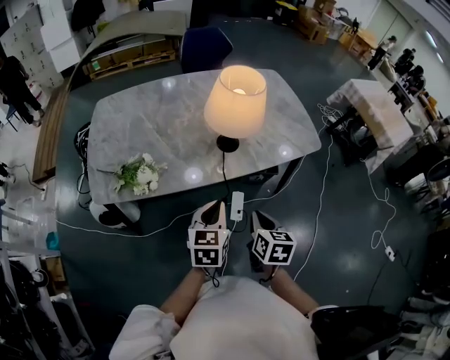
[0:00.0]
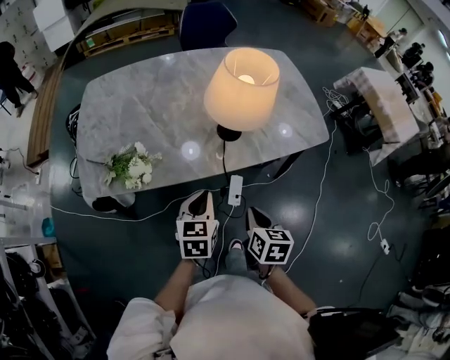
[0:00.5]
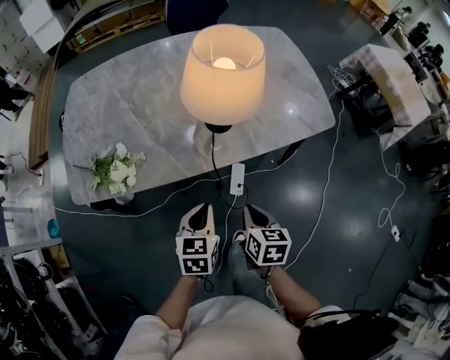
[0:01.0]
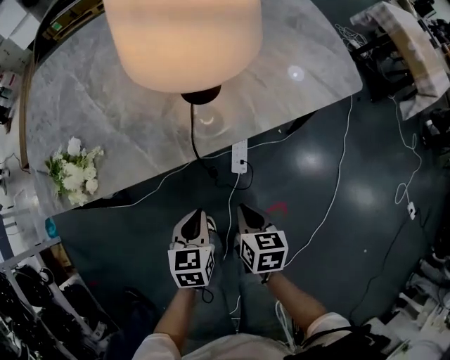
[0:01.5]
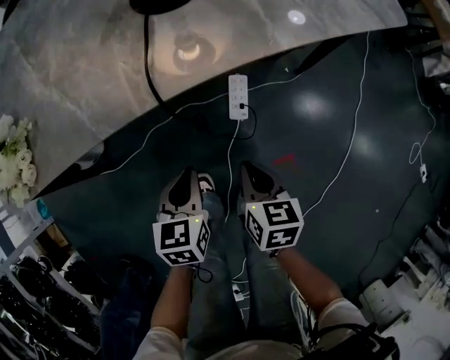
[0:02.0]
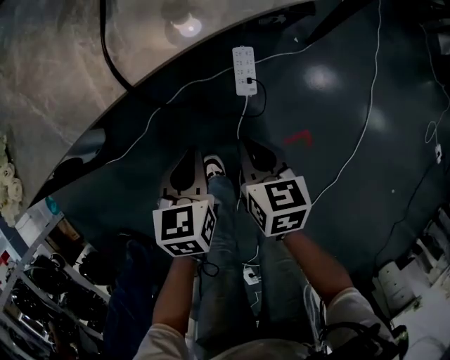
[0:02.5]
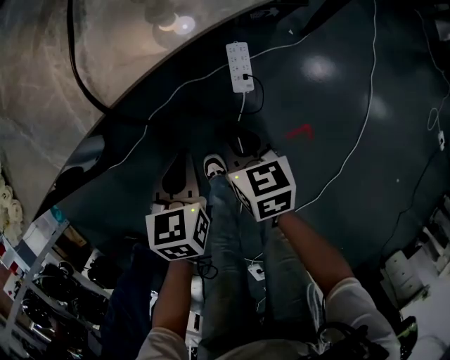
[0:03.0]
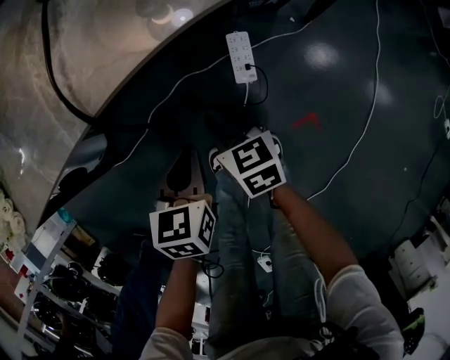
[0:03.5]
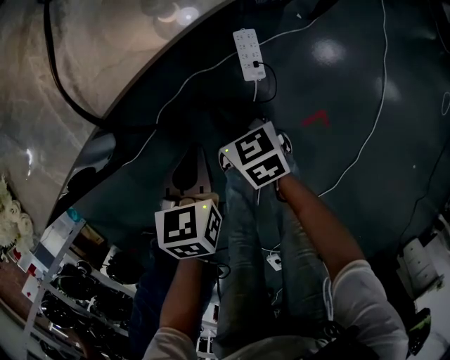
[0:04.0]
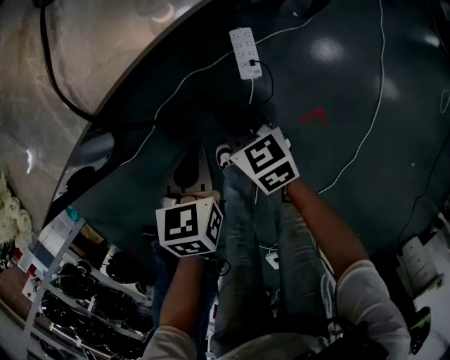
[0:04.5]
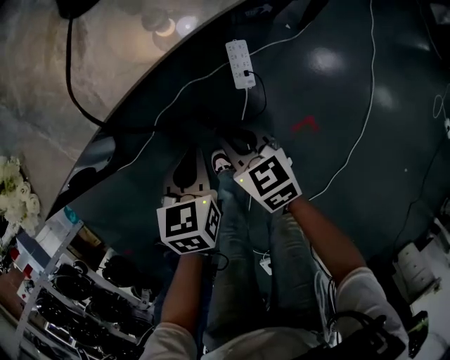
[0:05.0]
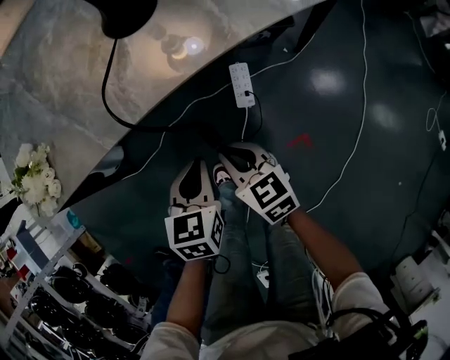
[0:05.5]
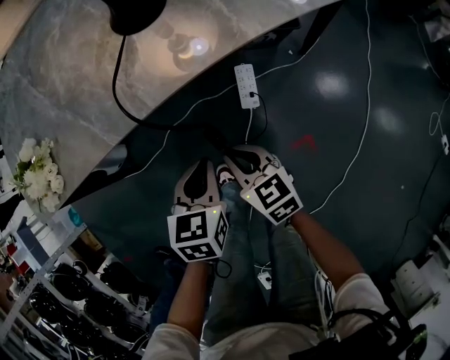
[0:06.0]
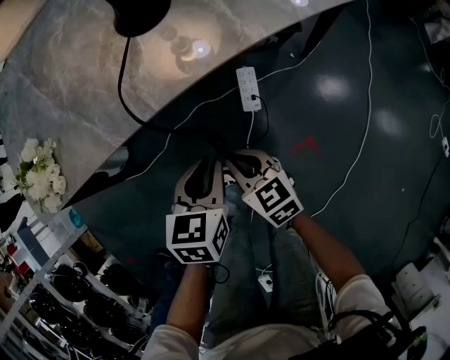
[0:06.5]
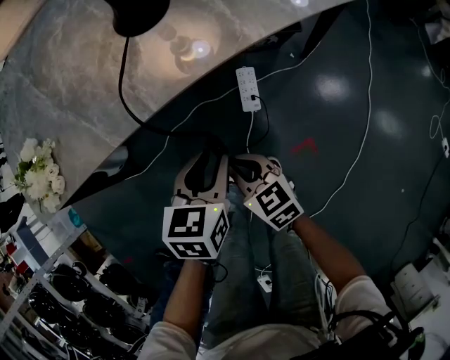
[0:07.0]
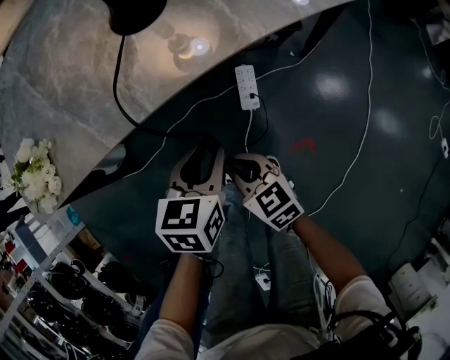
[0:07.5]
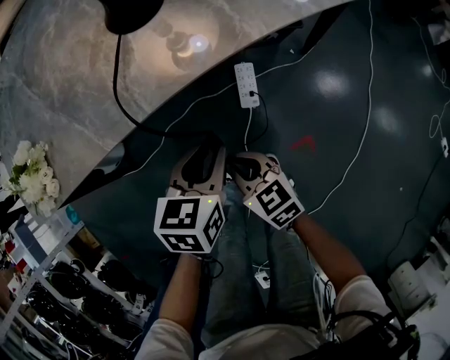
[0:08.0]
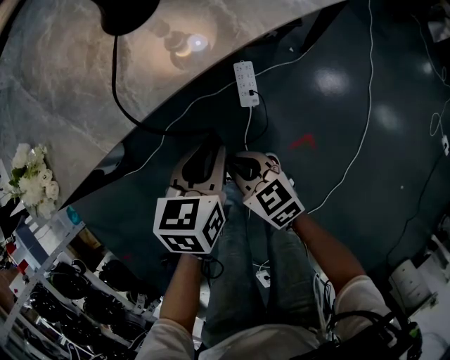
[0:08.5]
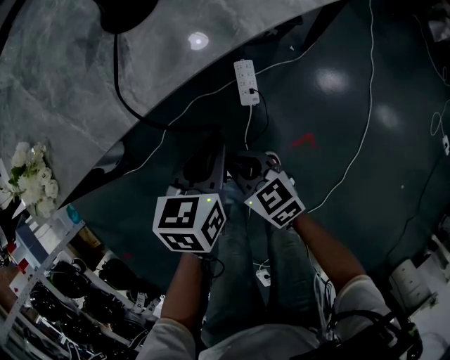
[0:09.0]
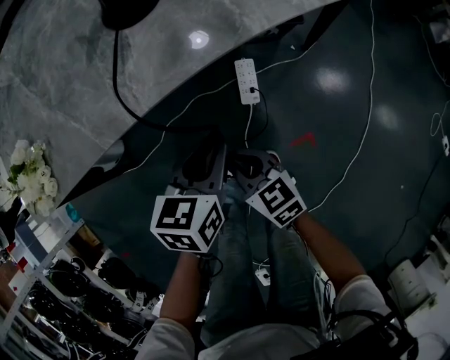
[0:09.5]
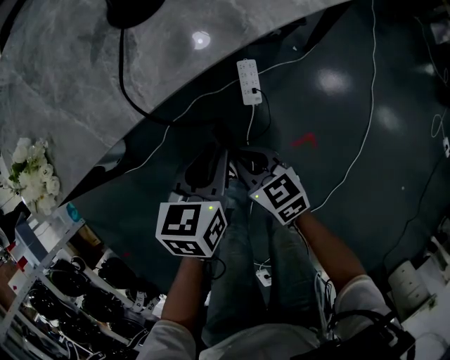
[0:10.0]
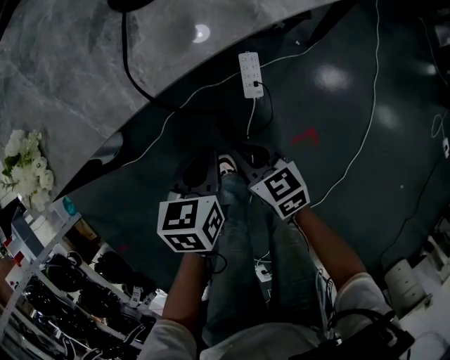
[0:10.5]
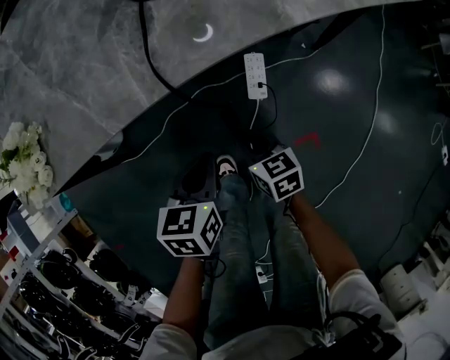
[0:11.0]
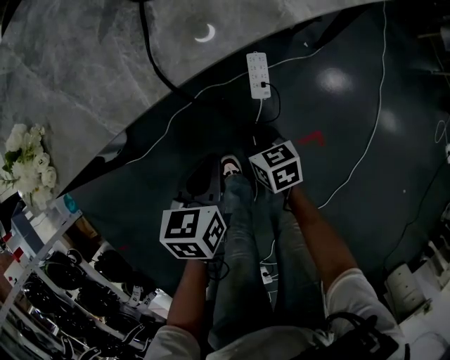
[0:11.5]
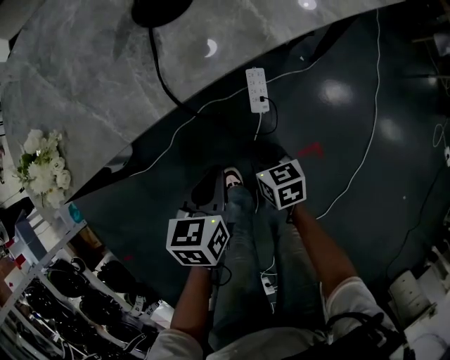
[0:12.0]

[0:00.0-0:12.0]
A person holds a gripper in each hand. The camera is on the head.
0:00.0 to 0:02.0: The two grippers go some 35 cm downward.
0:02.0 to 0:04.0: The left gripper heads downward, covering about 5 cm; the right gripper shifts about 15 cm downward, to the left and forward.
0:04.0 to 0:06.0: The right gripper heads upward and backward, covering approximately 15 cm, while the left gripper goes some 10 cm upward.
0:06.0 to 0:08.0: The left gripper opens up.
0:08.0 to 0:10.0: The grippers stay close to where they were, moving slightly.
0:10.0 to 0:12.0: The right gripper moves downward, approximately 5 cm, while the left gripper ends up about 5 cm from where it was.

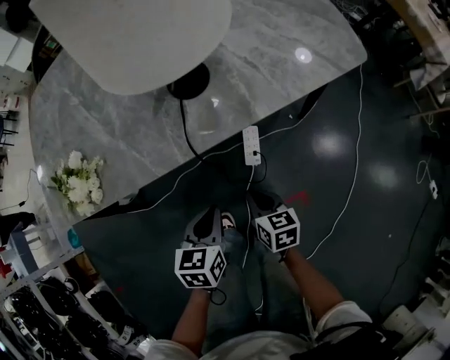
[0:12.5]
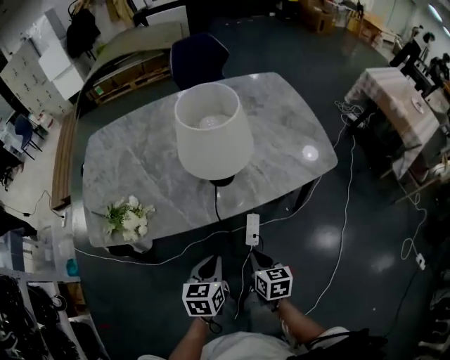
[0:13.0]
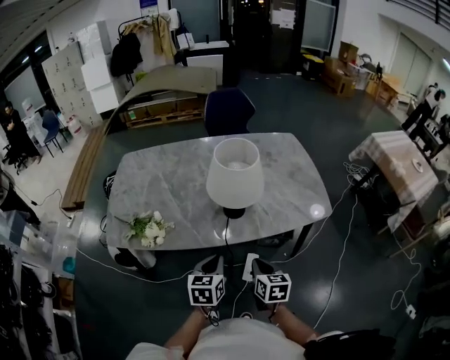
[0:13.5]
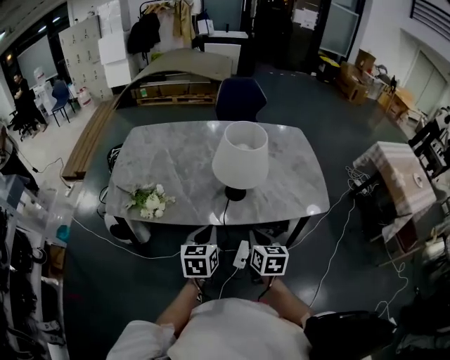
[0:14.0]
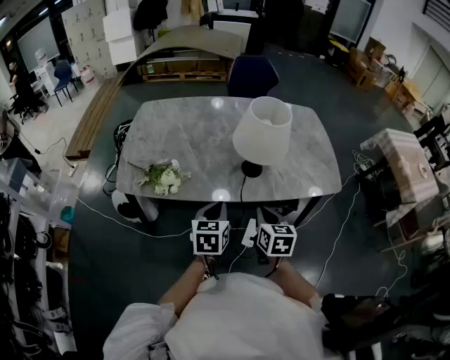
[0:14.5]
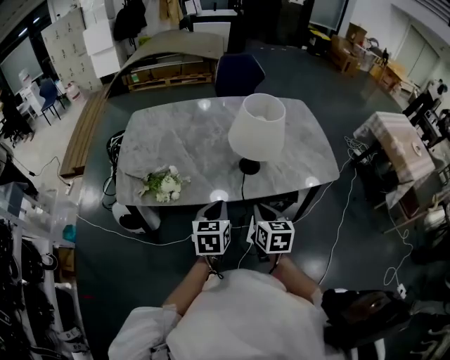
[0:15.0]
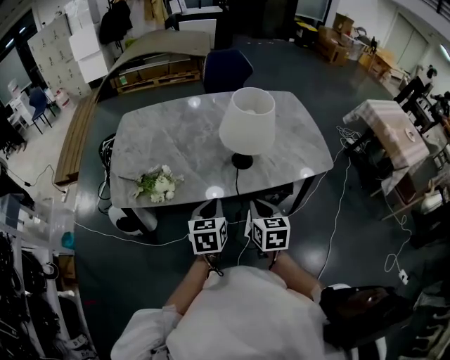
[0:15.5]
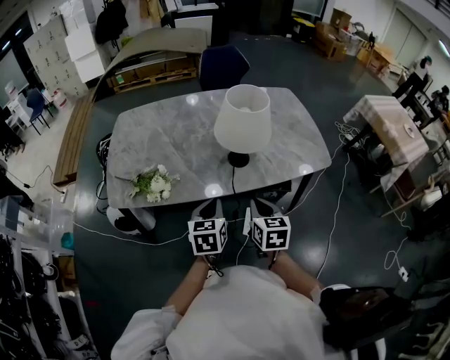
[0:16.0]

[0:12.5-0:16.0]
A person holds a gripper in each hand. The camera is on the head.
0:12.5 to 0:14.5: Both grippers move upward, roughly 30 cm. The right gripper swivels about 20 degrees. Meanwhile the left gripper rotates some 20 degrees.
0:14.5 to 0:16.0: The grippers move only a little.

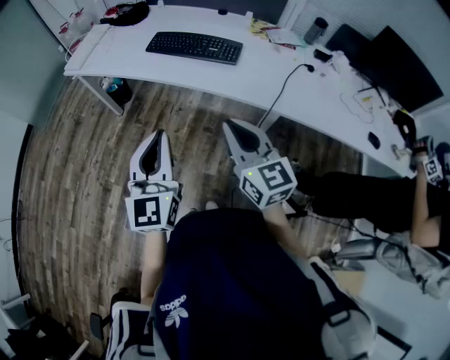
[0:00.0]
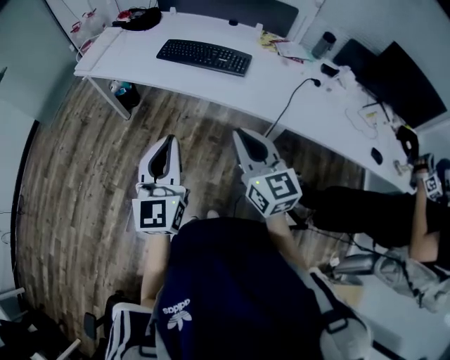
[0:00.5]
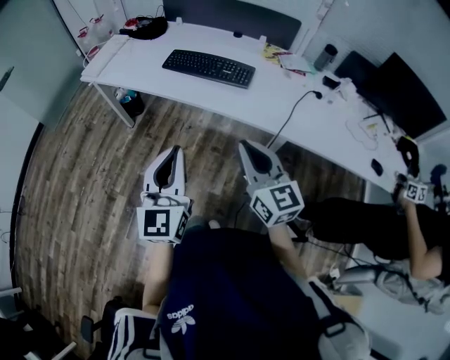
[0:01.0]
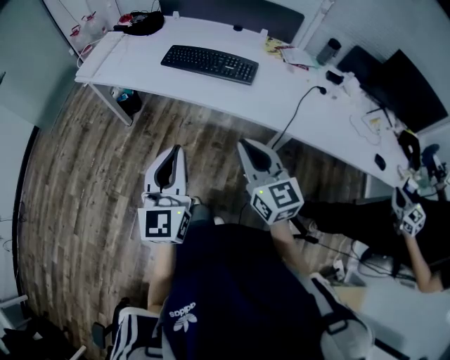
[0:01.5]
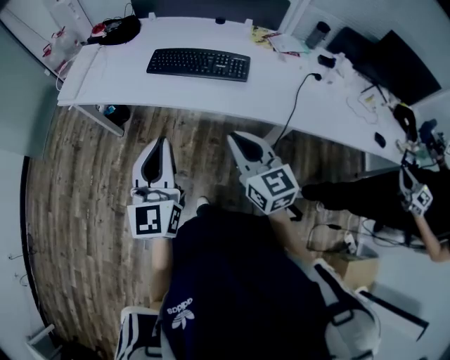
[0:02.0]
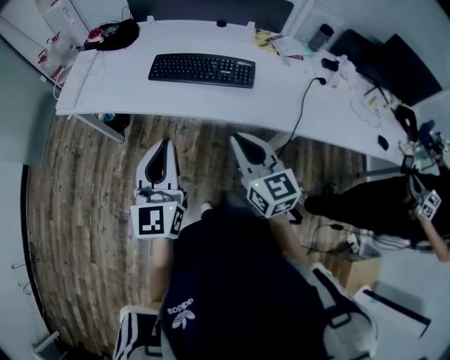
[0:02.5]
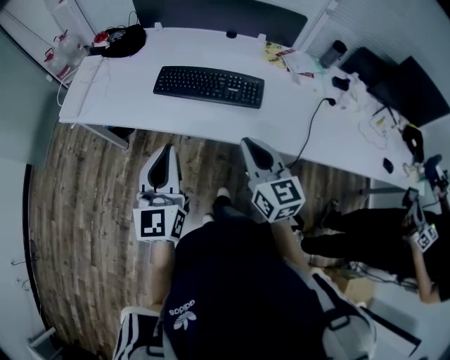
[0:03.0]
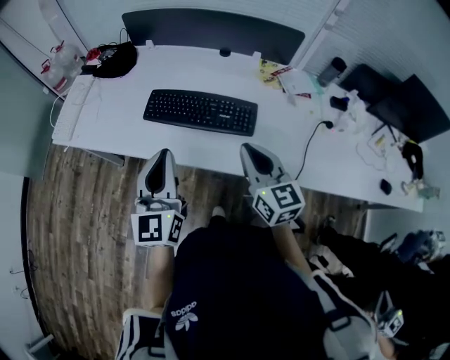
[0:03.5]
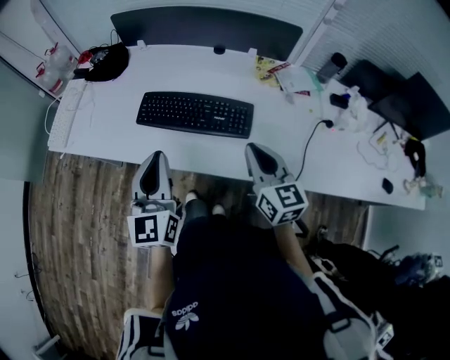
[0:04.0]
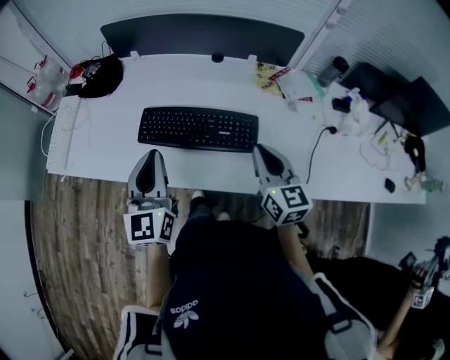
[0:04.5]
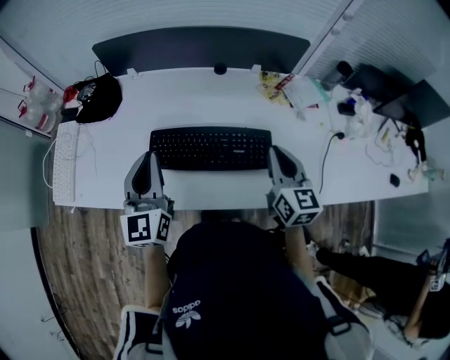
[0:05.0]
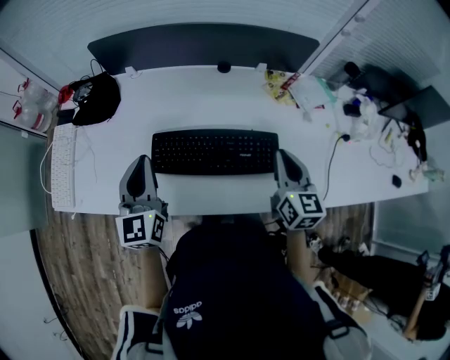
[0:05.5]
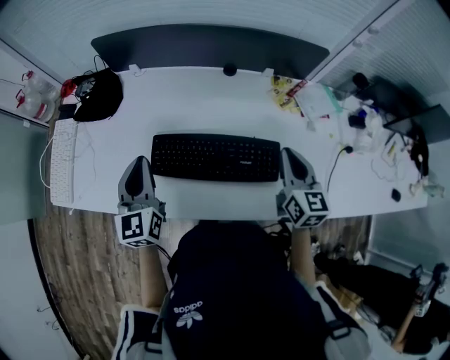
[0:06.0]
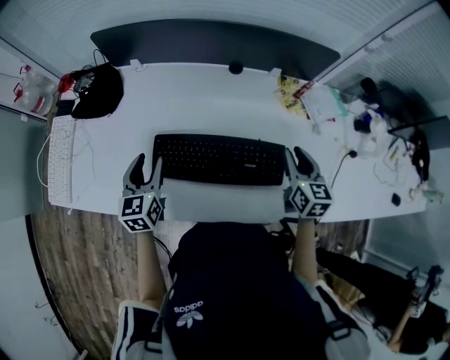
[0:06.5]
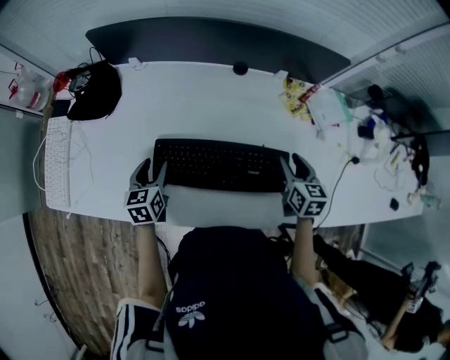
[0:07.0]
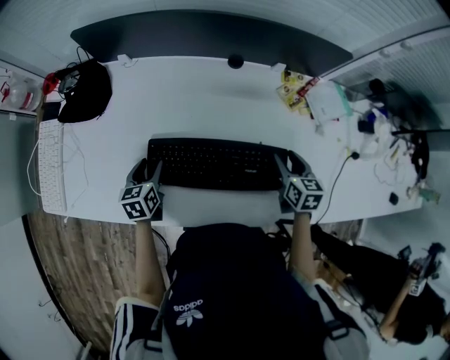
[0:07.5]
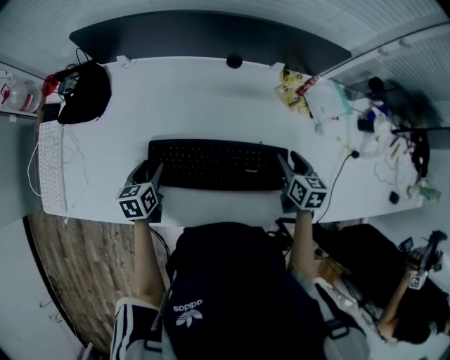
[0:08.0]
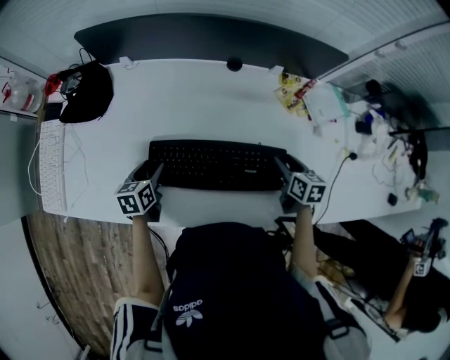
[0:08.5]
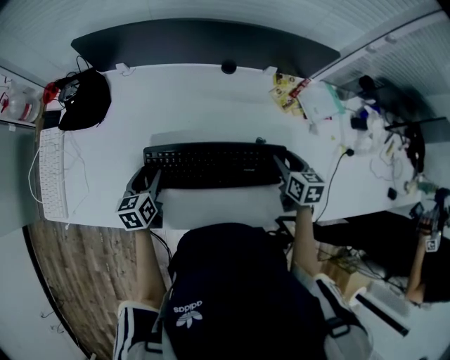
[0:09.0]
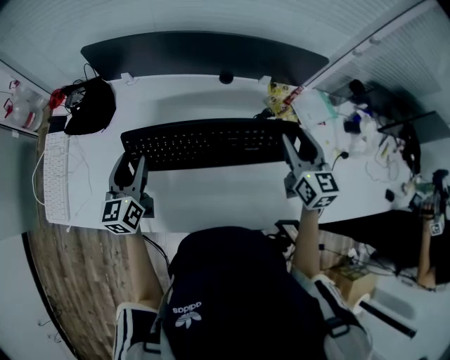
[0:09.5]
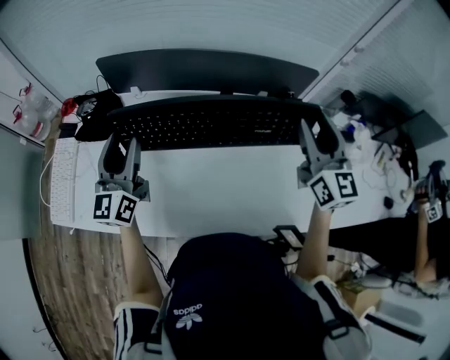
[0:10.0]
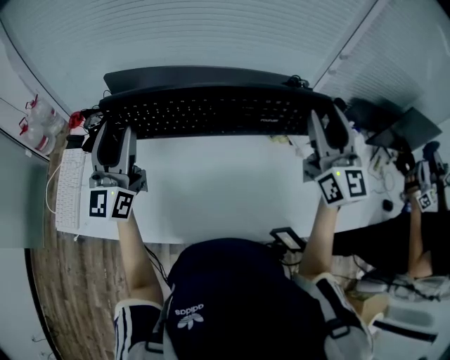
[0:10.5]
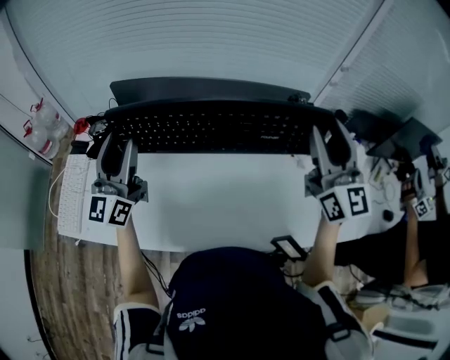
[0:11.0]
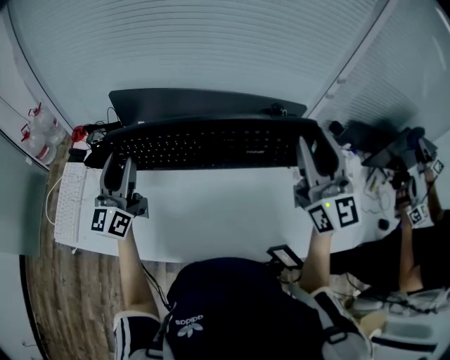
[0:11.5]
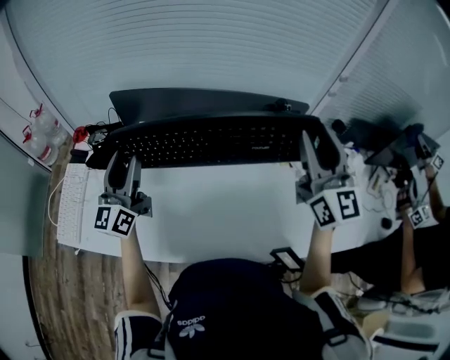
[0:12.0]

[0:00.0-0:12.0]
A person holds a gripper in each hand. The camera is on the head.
0:00.0 to 0:02.0: The two grippers go approximately 15 cm forward and to the left.
0:02.0 to 0:04.0: The right gripper is displaced forward and to the right by roughly 25 cm; the left gripper goes approximately 25 cm forward.
0:04.0 to 0:06.0: The right gripper shifts about 15 cm forward; the left gripper goes some 25 cm forward and to the left.
0:06.0 to 0:08.0: Both grippers move downward, about 20 cm. The right gripper swivels roughly 30 degrees, and opens up. The left gripper angles its fingers downward, by some 30 degrees, and opens its fingers.
0:08.0 to 0:10.0: The grippers both shift upward by roughly 30 cm. The left gripper points its fingers approximately 50 degrees further upward, while the right gripper tips its fingers upward by some 50 degrees.
0:10.0 to 0:12.0: The right gripper travels upward by some 10 cm.
